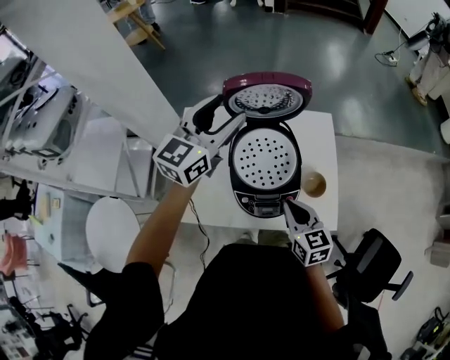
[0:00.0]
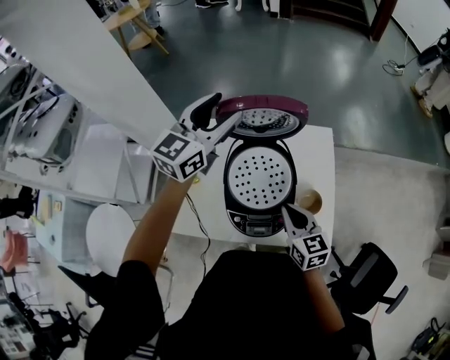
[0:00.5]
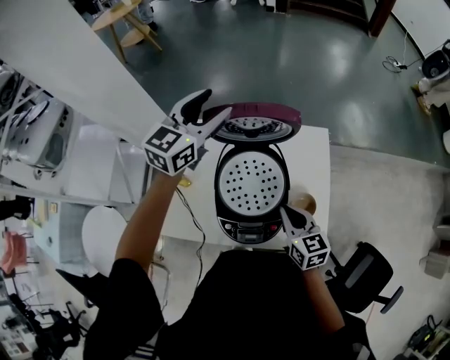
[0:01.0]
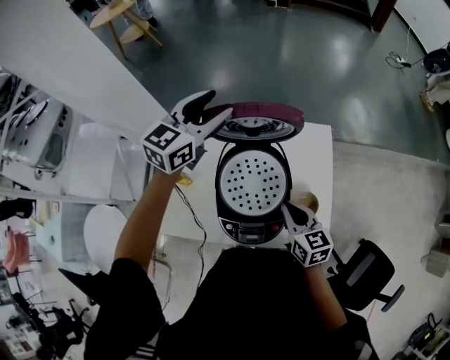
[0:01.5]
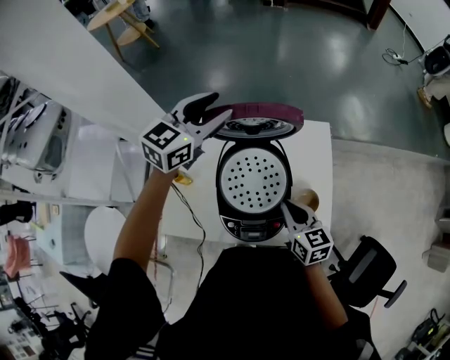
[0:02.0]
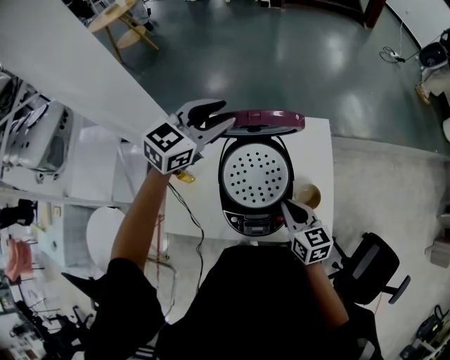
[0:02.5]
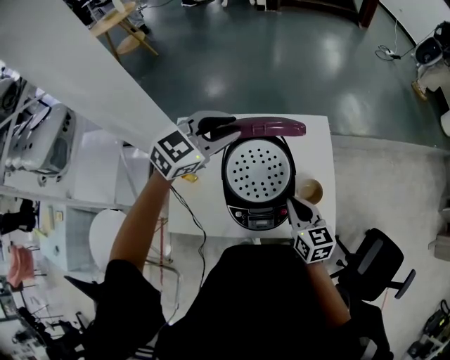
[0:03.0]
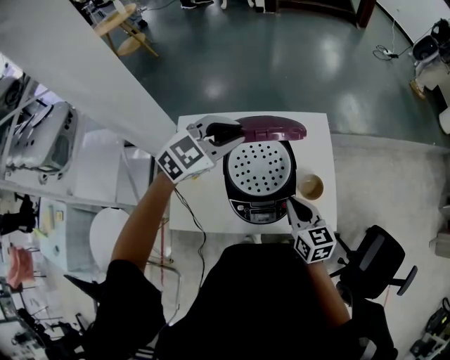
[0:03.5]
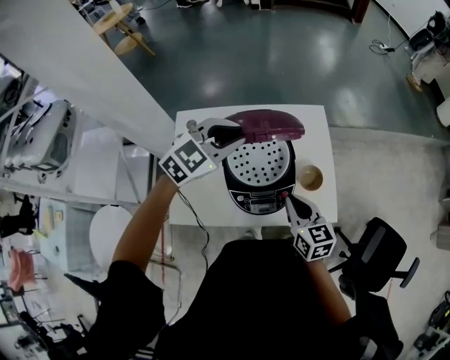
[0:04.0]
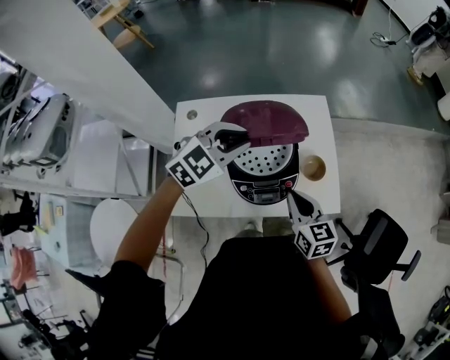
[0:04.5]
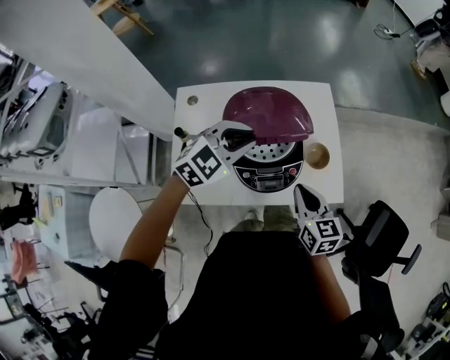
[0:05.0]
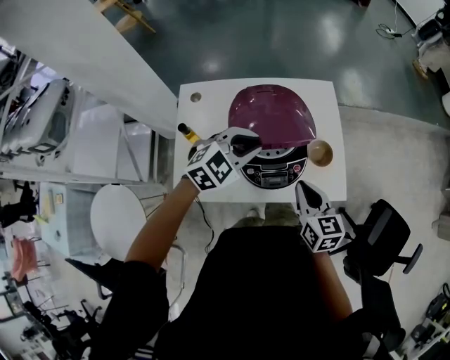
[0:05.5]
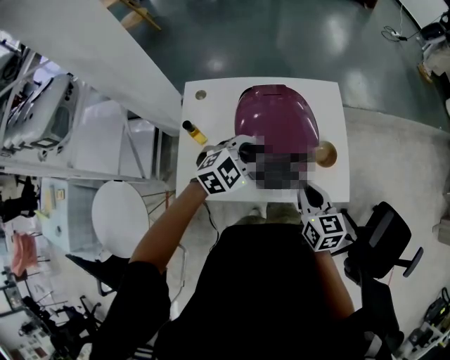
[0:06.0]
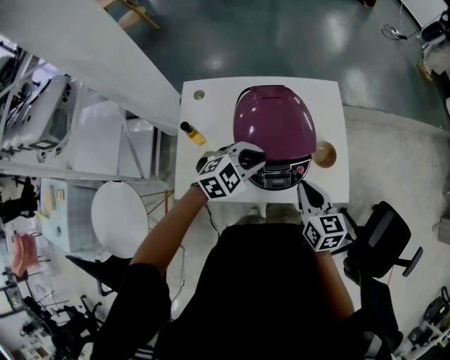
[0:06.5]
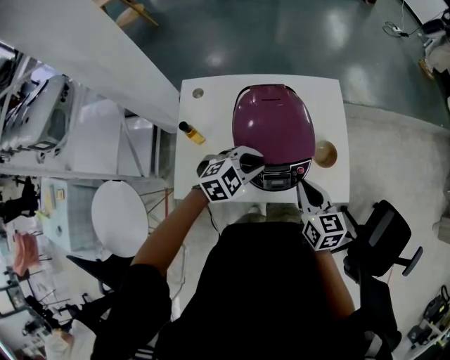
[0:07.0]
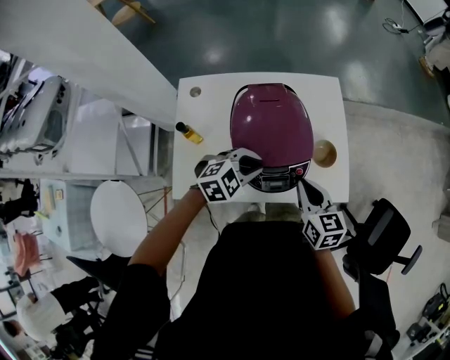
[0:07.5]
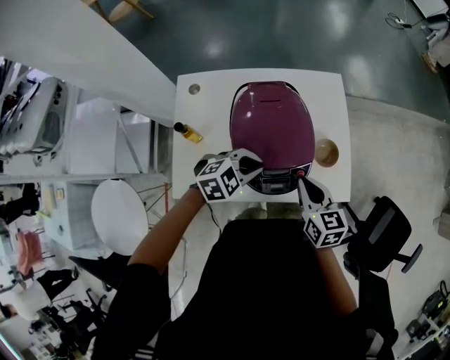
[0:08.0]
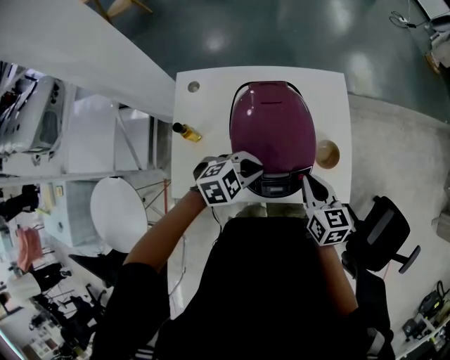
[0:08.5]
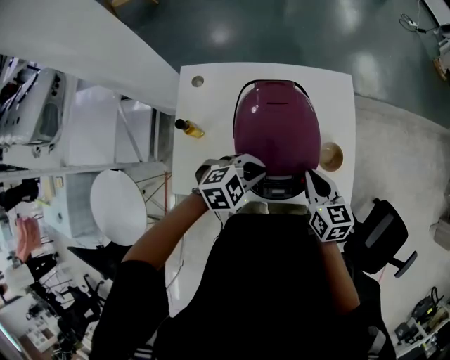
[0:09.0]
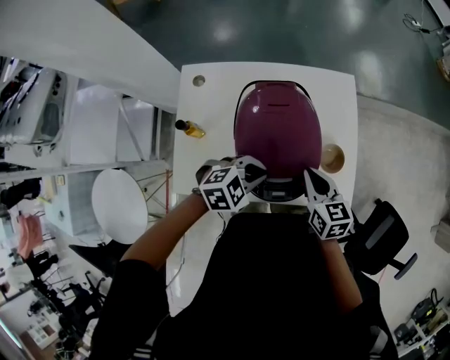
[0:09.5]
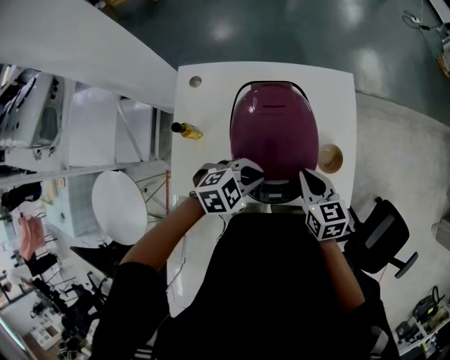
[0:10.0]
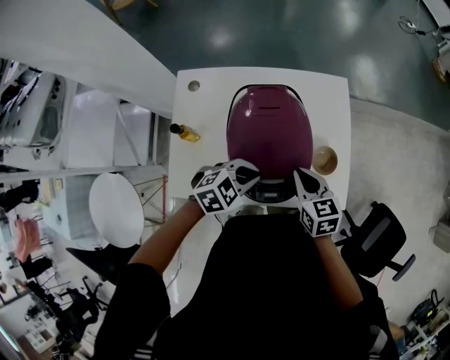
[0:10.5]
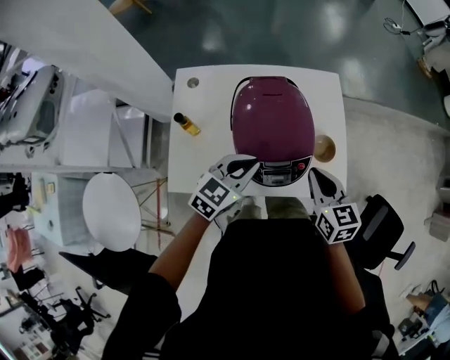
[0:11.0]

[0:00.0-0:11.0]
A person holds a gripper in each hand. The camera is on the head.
0.0 to 2.0 s: Both grippers move forward, approximately 10 cm.
2.0 to 3.5 s: The left gripper is displaced backward and to the right by some 15 cm, swivels some 30 degrees, and closes its fingers; the right gripper travels backward by some 5 cm.
3.5 to 5.5 s: The right gripper moves backward, roughly 5 cm. The left gripper moves downward and backward, some 15 cm.
5.5 to 7.5 s: The left gripper goes about 10 cm downward.
7.5 to 9.0 s: The right gripper travels forward by about 5 cm.
9.0 to 11.0 s: The right gripper ends up about 5 cm from where it was. The left gripper changes place by approximately 5 cm, and swivels about 40 degrees.

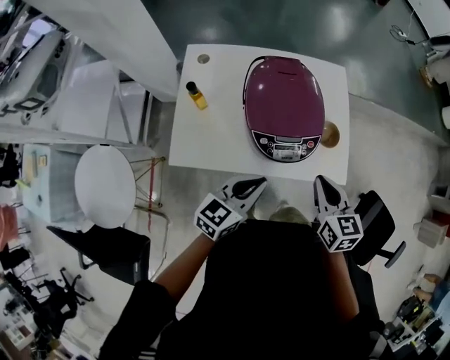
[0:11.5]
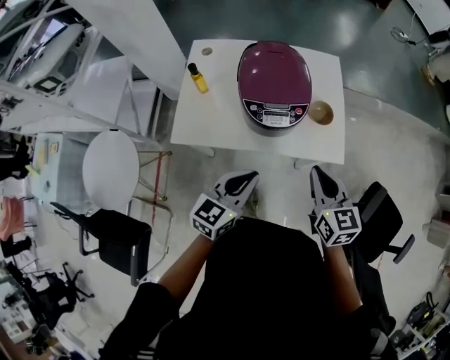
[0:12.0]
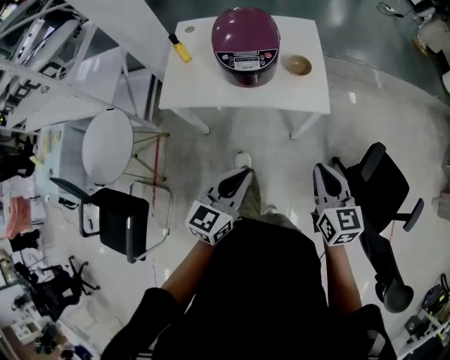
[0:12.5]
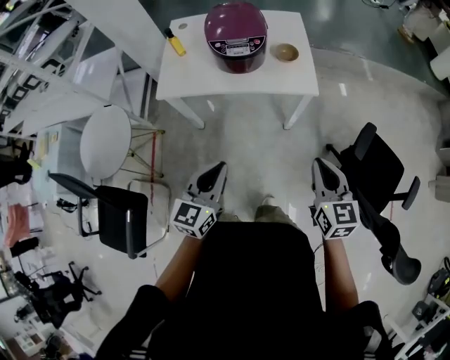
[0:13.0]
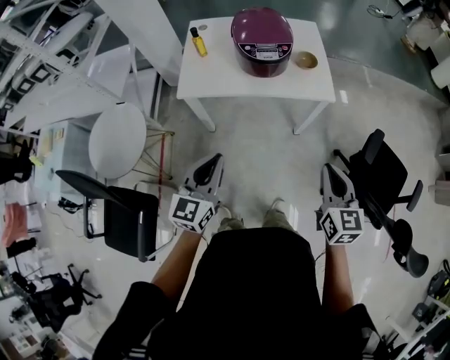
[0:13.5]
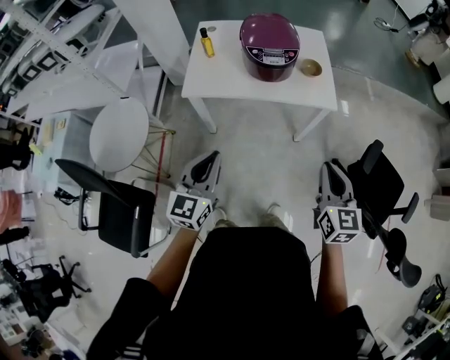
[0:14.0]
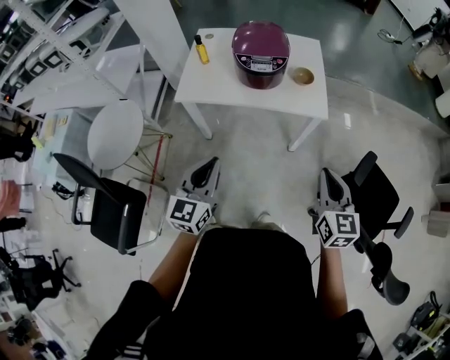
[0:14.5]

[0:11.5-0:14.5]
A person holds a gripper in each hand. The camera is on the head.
11.5 to 13.0 s: The left gripper heads backward, covering roughly 35 cm, and swivels approximately 20 degrees. The right gripper heads backward and to the right, covering about 40 cm.
13.0 to 14.5 s: The right gripper goes to the left and returns, about 10 cm each way; the left gripper goes approximately 5 cm to the left.

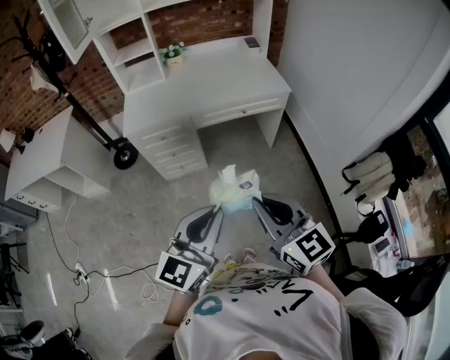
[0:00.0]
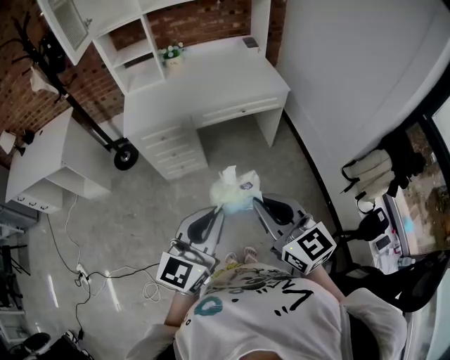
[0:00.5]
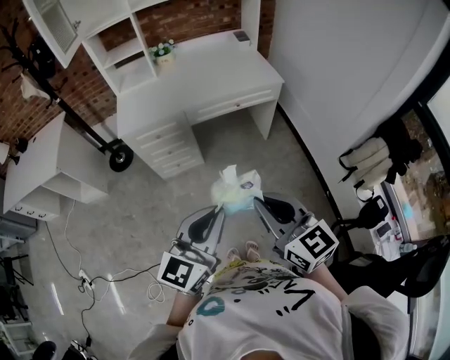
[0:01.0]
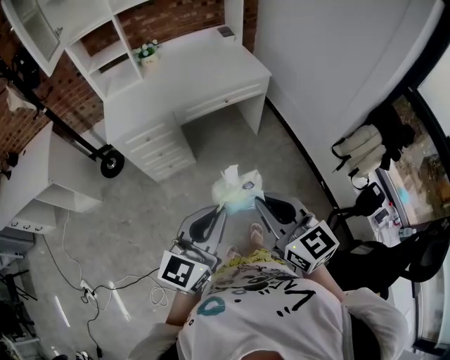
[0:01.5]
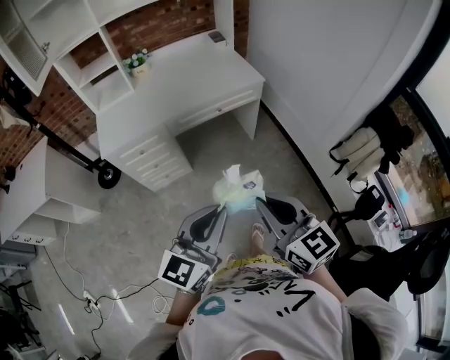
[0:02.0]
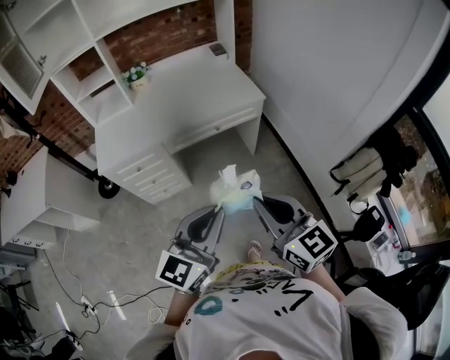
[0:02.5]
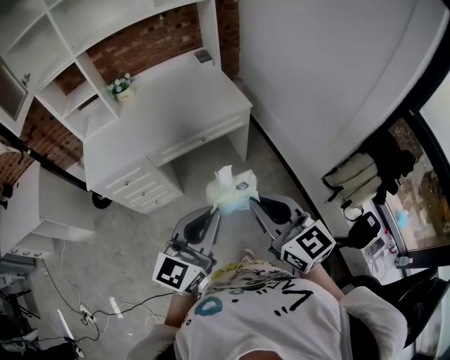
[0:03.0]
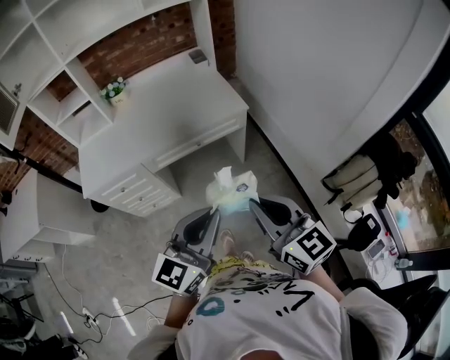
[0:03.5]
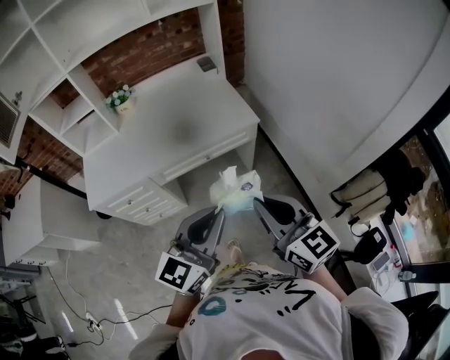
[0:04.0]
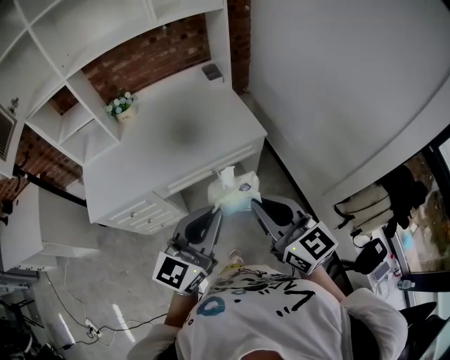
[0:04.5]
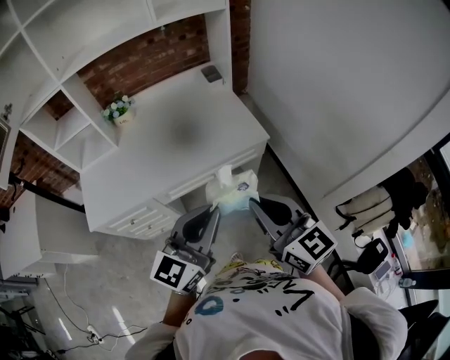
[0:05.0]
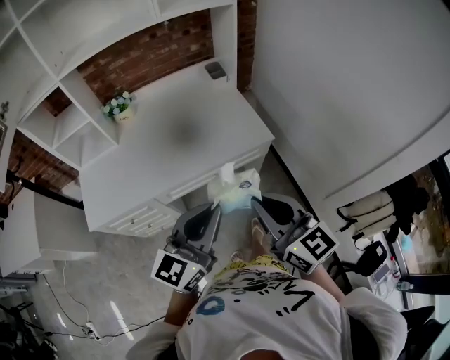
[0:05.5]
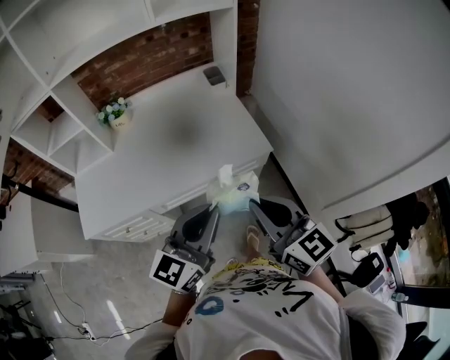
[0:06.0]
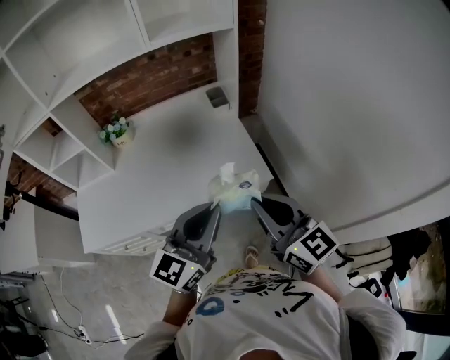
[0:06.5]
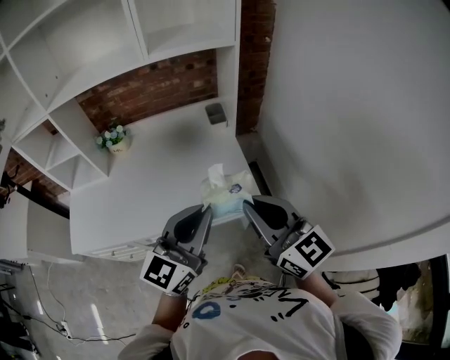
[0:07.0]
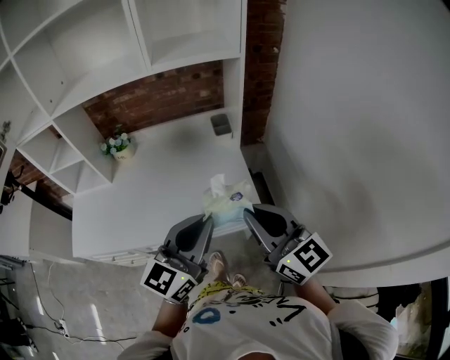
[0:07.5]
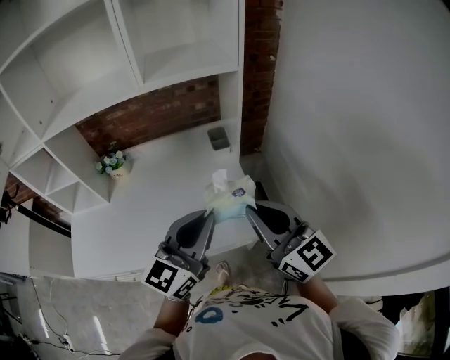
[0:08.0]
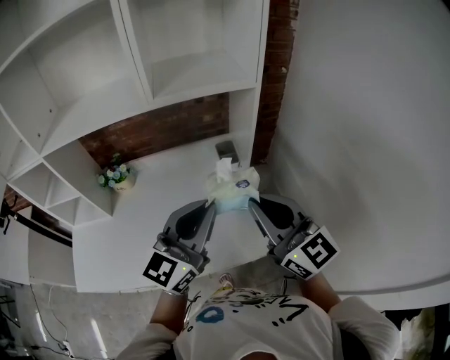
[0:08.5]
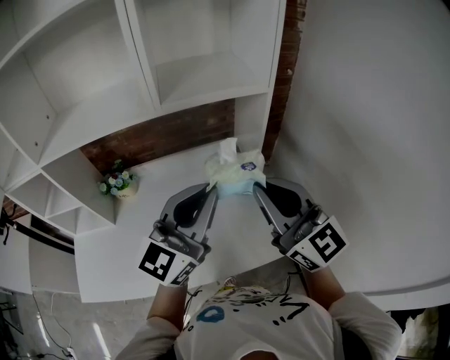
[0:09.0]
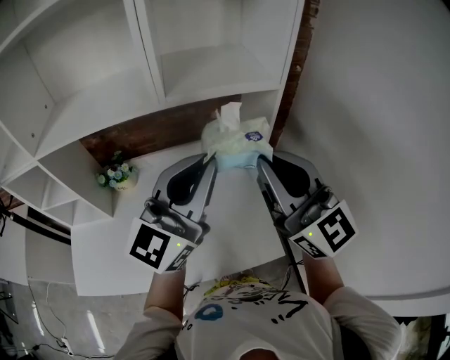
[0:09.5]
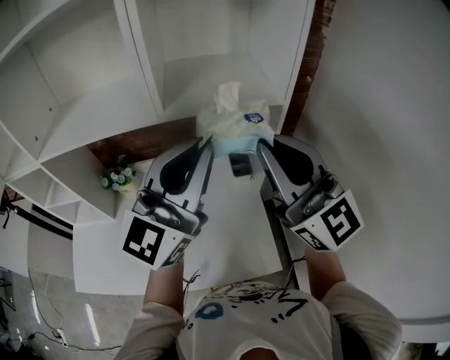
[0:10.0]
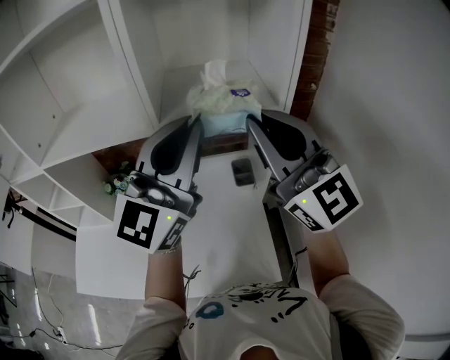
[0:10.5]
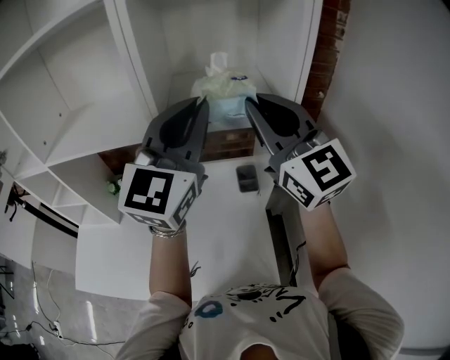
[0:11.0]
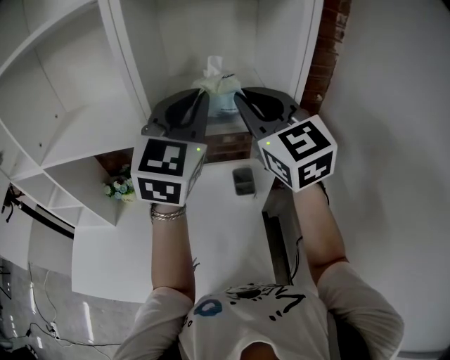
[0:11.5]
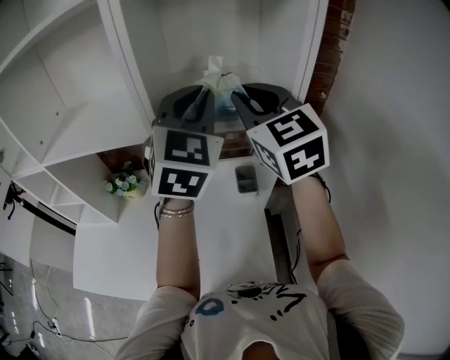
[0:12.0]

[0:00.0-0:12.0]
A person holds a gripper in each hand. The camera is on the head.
0.0 to 2.0 s: The right gripper ends up about 5 cm from where it was. The left gripper shifts by roughly 5 cm.
2.0 to 4.0 s: The two grippers go about 30 cm forward and to the right.
4.0 to 6.0 s: Both grippers travel together forward, roughly 20 cm.
6.0 to 8.0 s: The grippers both shift forward by about 25 cm.
8.0 to 10.0 s: Both grippers move forward and upward, approximately 25 cm. The left gripper swivels approximately 20 degrees. Meanwhile the right gripper changes its angle by some 20 degrees.
10.0 to 12.0 s: Both grippers travel together forward, some 15 cm. The left gripper rotates some 40 degrees, while the right gripper rotates about 30 degrees.

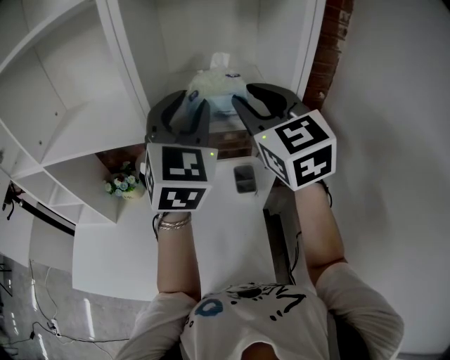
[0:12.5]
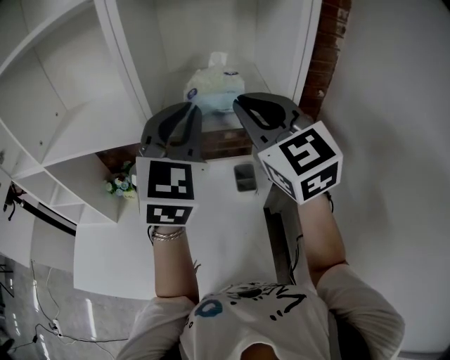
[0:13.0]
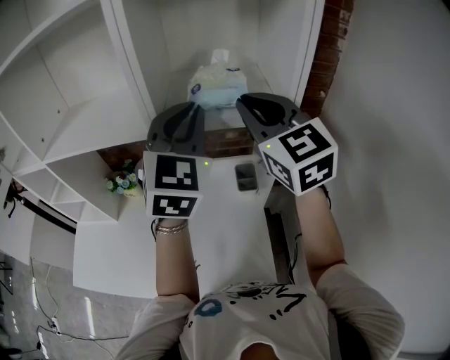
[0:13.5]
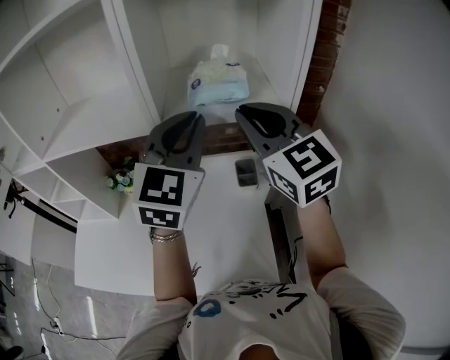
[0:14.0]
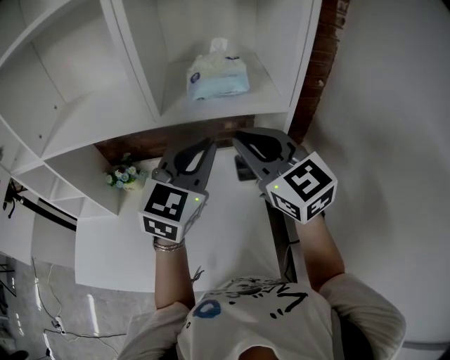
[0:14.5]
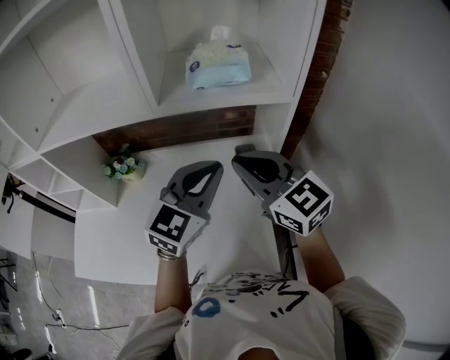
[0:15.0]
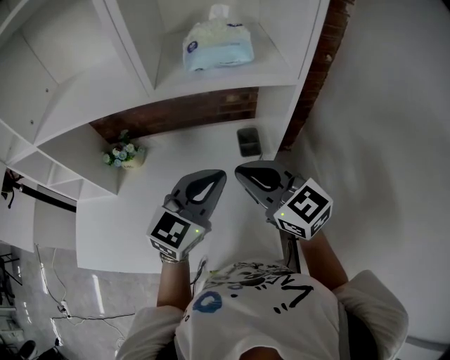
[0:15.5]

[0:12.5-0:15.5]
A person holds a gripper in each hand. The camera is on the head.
12.5 to 14.0 s: The right gripper moves about 5 cm. The left gripper changes place by about 5 cm, and closes its fingers.
14.0 to 15.5 s: Both grippers move downward and backward, approximately 20 cm. The left gripper turns by roughly 30 degrees; the right gripper rotates roughly 20 degrees.
